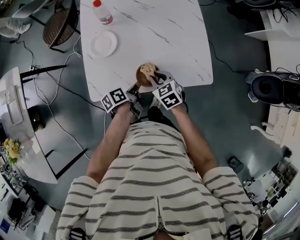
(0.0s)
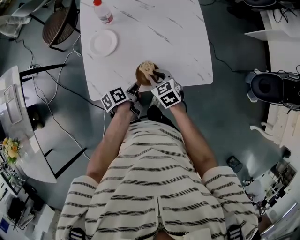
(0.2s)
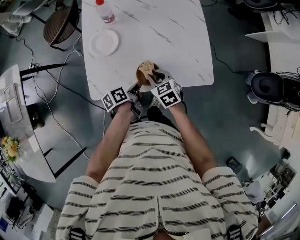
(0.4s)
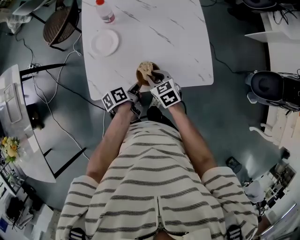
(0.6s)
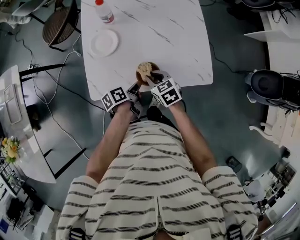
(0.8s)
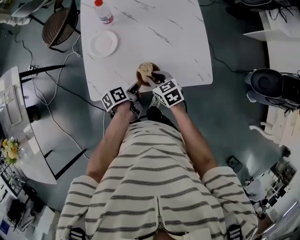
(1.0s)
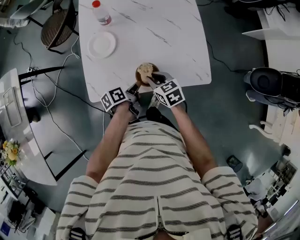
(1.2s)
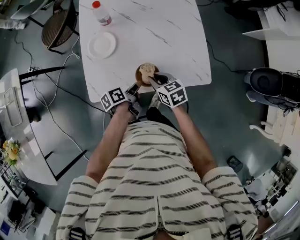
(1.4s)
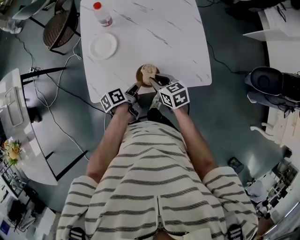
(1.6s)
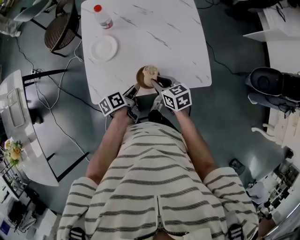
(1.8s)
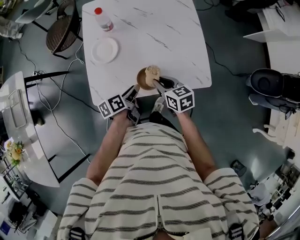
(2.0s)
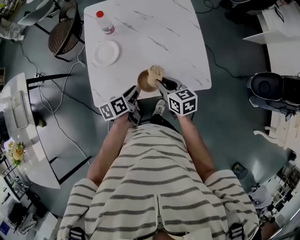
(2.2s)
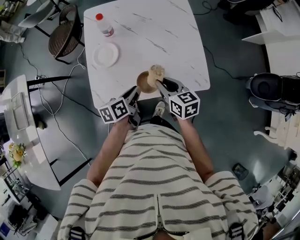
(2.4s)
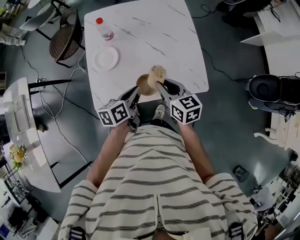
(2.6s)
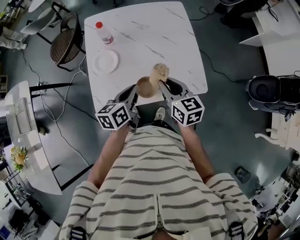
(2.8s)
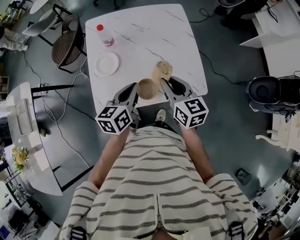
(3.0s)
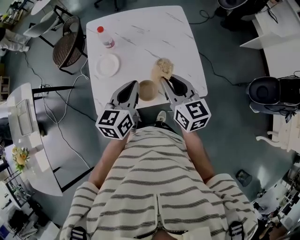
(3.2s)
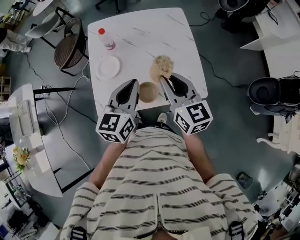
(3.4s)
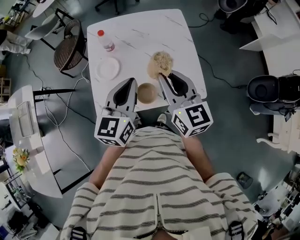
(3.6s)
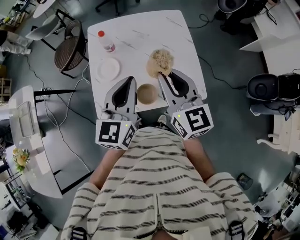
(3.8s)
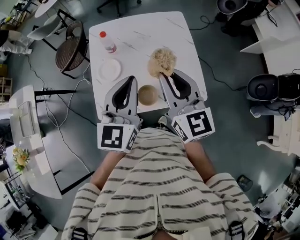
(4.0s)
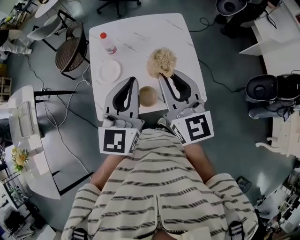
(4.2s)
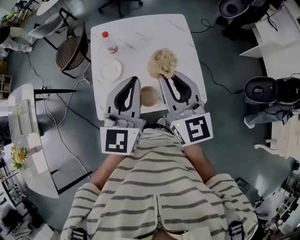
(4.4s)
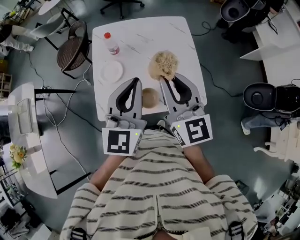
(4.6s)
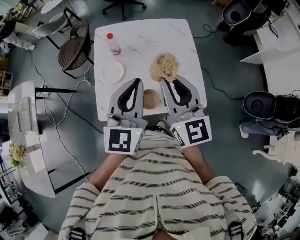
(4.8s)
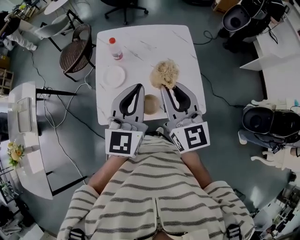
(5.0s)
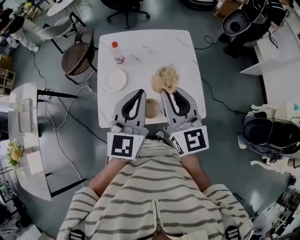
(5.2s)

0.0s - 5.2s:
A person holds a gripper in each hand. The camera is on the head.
0.0s - 1.8s: The right gripper turns by approximately 20 degrees. The left gripper opens.
1.8s - 3.4s: The two grippers go about 25 cm upward. The right gripper turns by roughly 30 degrees. Meanwhile the left gripper rotates around the line of its fingers by some 60 degrees, clockwise from behind, and closes up.
3.4s - 5.2s: The grippers both shift upward by approximately 10 cm.

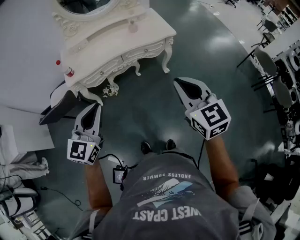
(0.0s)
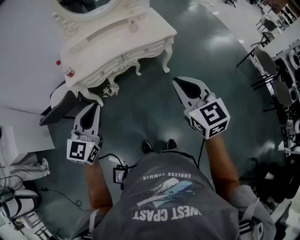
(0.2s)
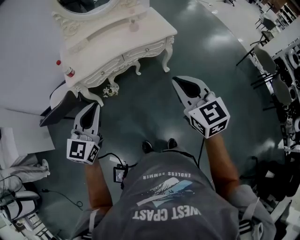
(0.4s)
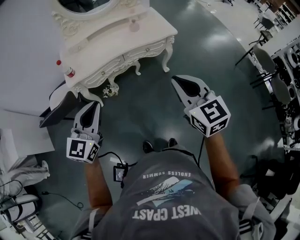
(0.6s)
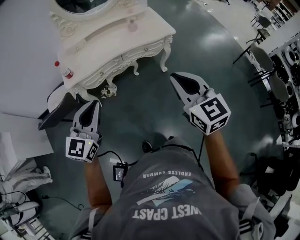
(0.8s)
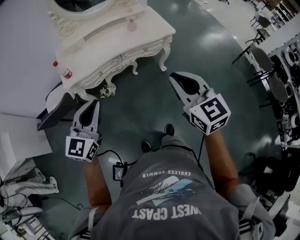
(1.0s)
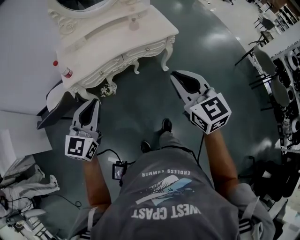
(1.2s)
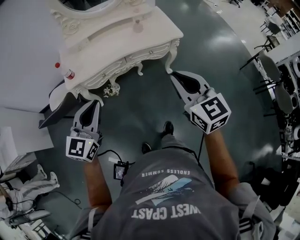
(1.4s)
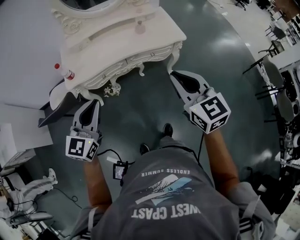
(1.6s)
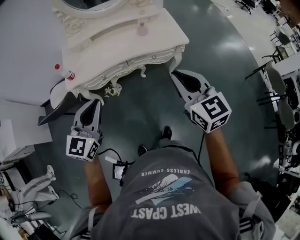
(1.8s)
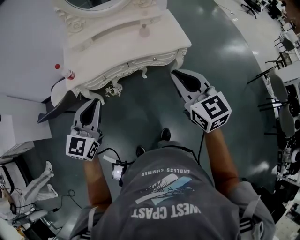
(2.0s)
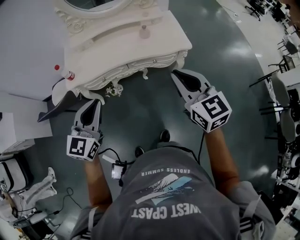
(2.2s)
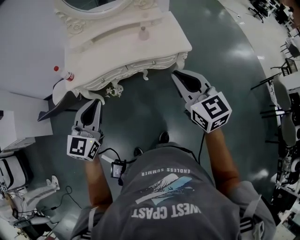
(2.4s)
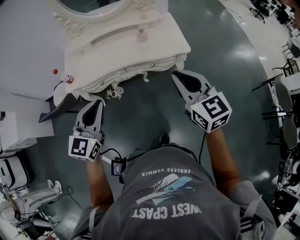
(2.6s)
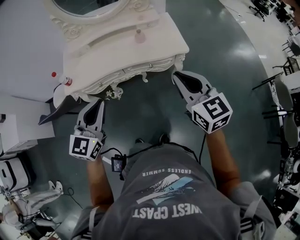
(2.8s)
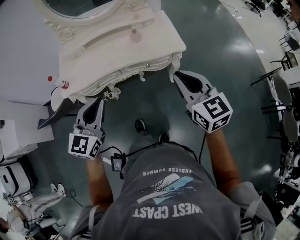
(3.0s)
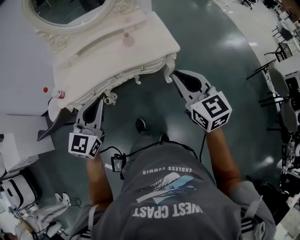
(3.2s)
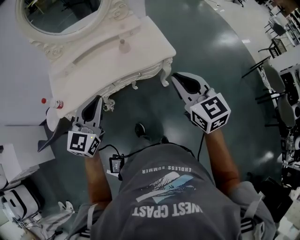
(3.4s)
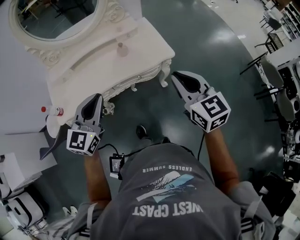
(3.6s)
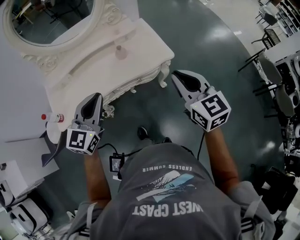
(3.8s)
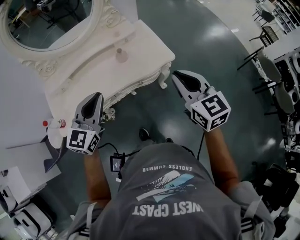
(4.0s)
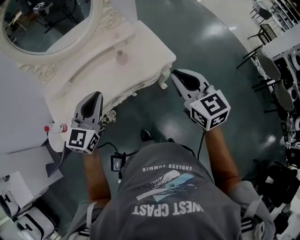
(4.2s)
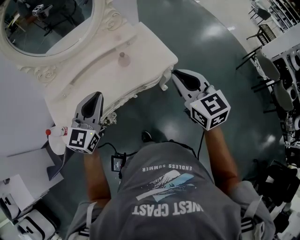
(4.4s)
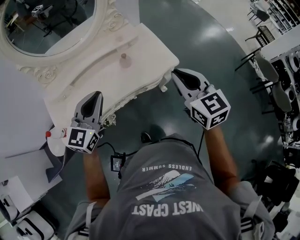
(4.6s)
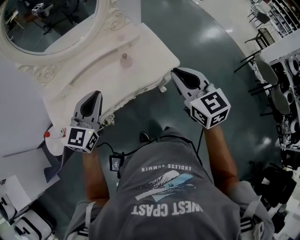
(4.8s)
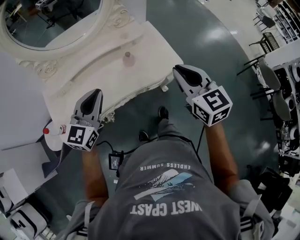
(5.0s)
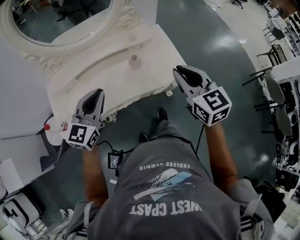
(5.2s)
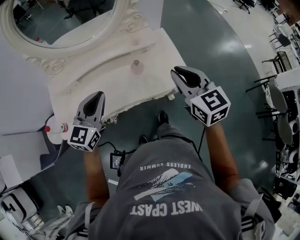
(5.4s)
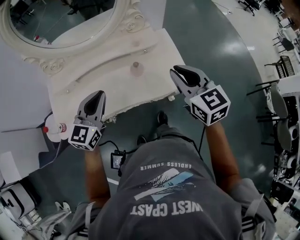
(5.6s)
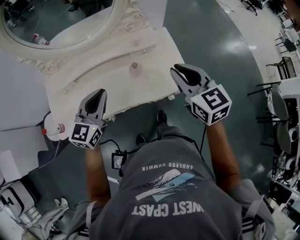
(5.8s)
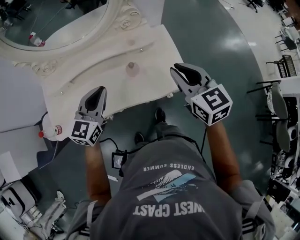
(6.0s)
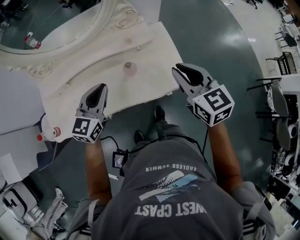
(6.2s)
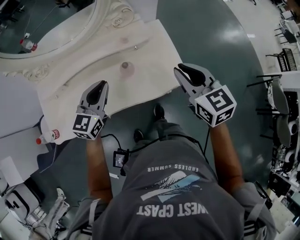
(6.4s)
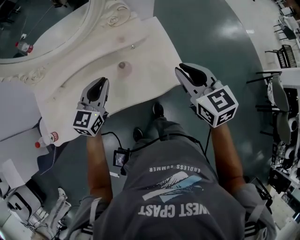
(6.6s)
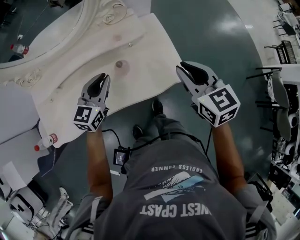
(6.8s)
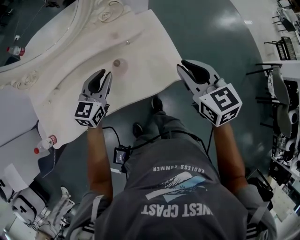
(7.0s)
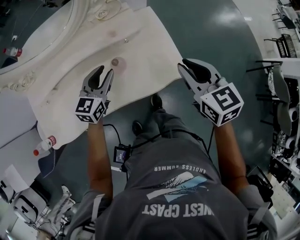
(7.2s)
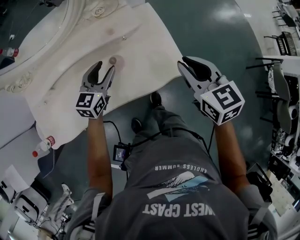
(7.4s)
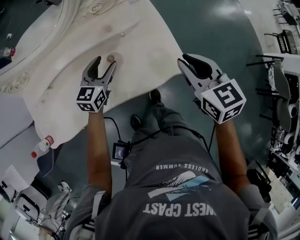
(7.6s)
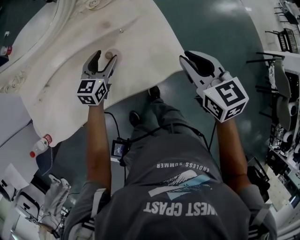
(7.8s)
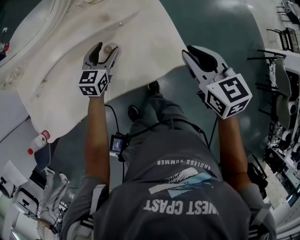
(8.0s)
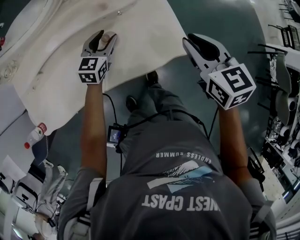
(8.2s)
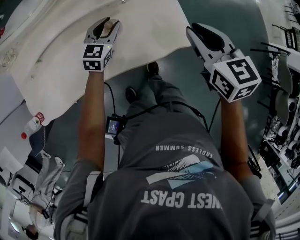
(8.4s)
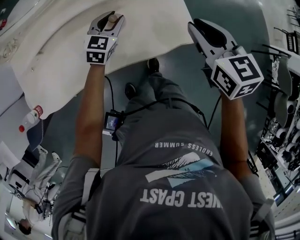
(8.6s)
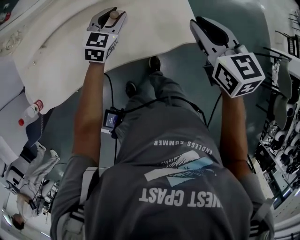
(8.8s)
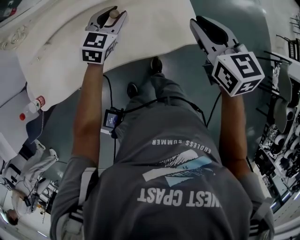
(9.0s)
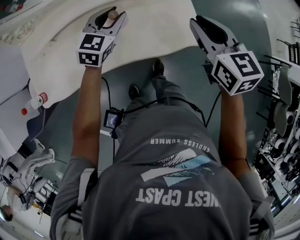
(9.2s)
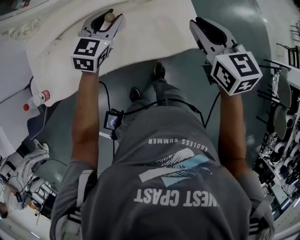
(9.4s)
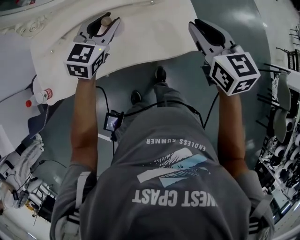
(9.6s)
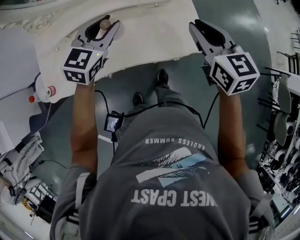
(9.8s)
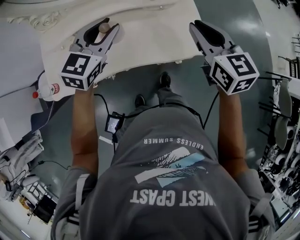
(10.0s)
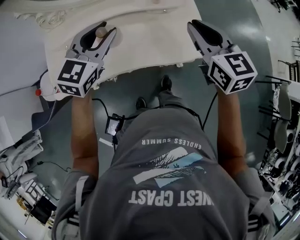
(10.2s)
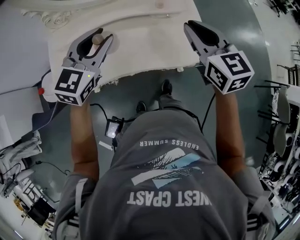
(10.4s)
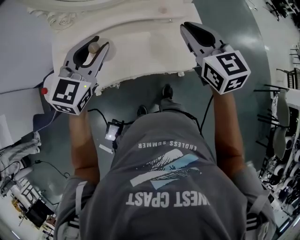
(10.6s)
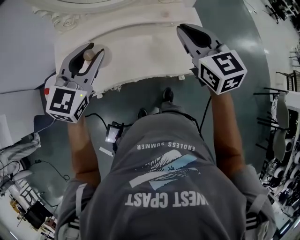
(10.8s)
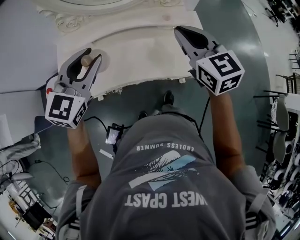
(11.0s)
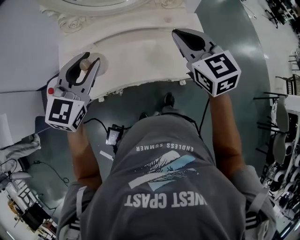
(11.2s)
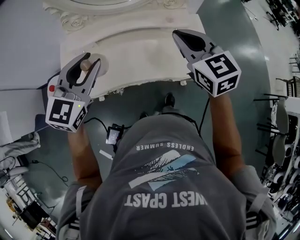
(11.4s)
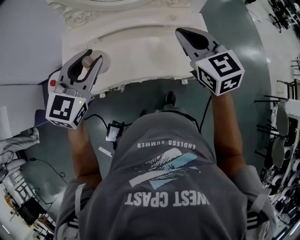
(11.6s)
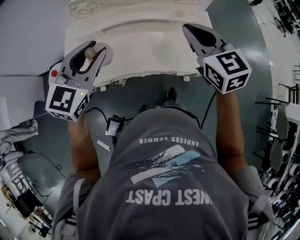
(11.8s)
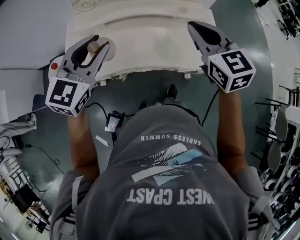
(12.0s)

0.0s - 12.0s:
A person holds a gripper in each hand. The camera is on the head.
0.0s - 1.6s: The two grippers go approximately 10 cm forward.
1.6s - 3.0s: The grippers both shift to the right and forward by roughly 15 cm.
3.0s - 4.4s: The left gripper moves forward, roughly 20 cm; the right gripper goes about 15 cm forward.
4.4s - 6.0s: The left gripper is displaced forward and downward by about 15 cm, while the right gripper shifts some 20 cm forward.
6.0s - 7.6s: The right gripper goes roughly 10 cm downward and to the right, while the left gripper shifts roughly 25 cm downward, forward and to the right, and opens.
7.6s - 9.0s: The left gripper closes.
9.0s - 10.4s: The left gripper shifts approximately 25 cm upward, backward and to the left, while the right gripper moves to the left and upward, roughly 15 cm.
10.4s - 12.0s: The right gripper goes roughly 10 cm to the left. Meanwhile the left gripper moves to the left and backward, about 10 cm.

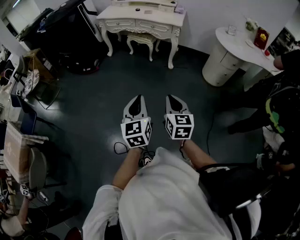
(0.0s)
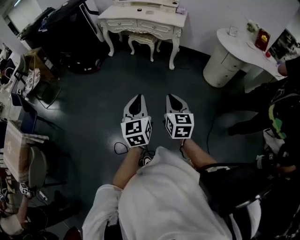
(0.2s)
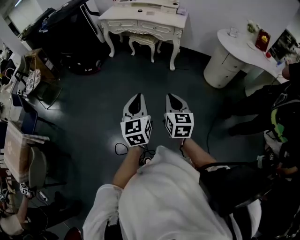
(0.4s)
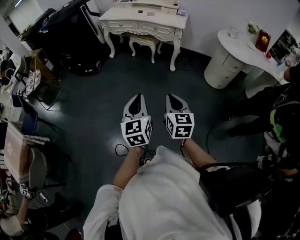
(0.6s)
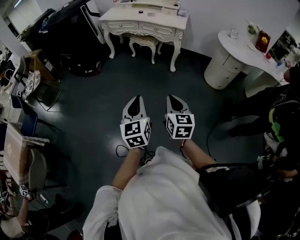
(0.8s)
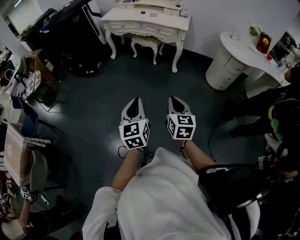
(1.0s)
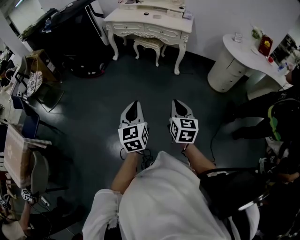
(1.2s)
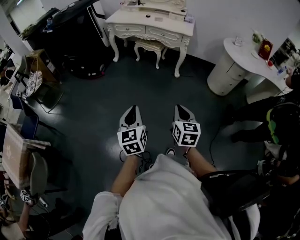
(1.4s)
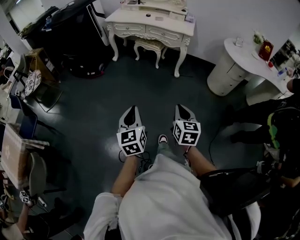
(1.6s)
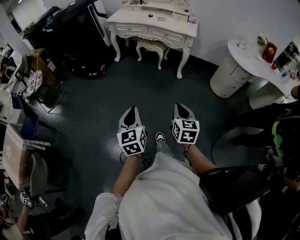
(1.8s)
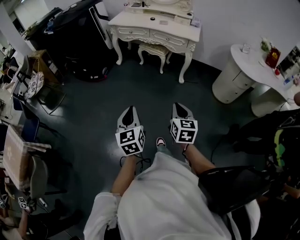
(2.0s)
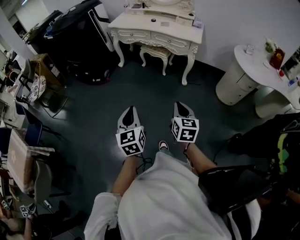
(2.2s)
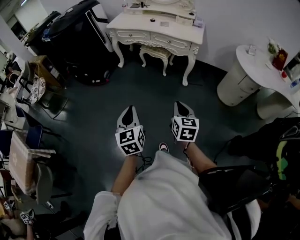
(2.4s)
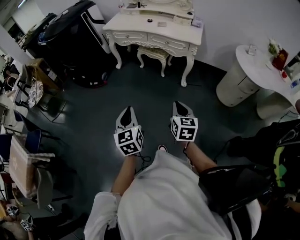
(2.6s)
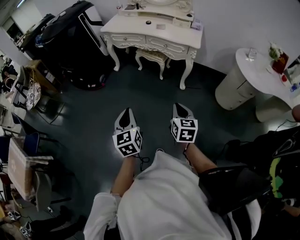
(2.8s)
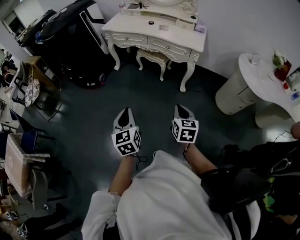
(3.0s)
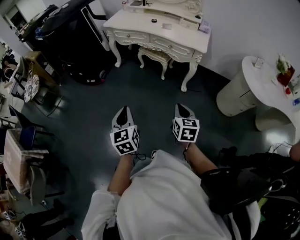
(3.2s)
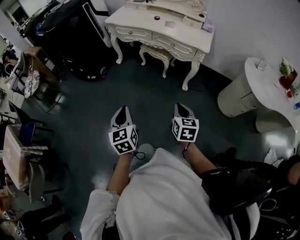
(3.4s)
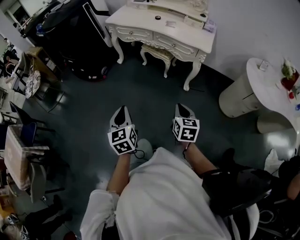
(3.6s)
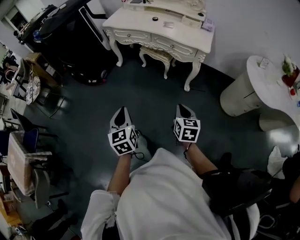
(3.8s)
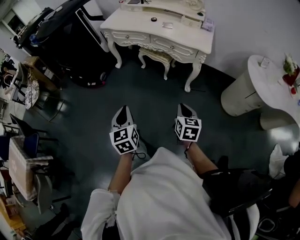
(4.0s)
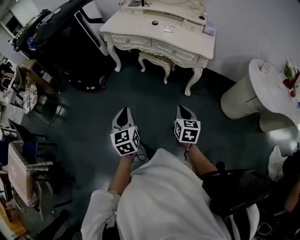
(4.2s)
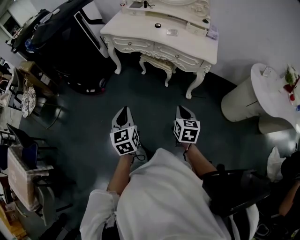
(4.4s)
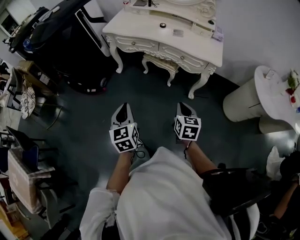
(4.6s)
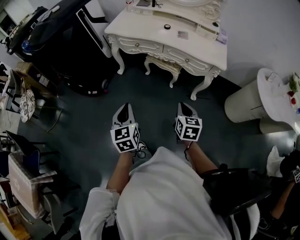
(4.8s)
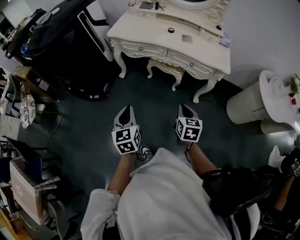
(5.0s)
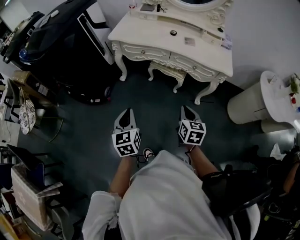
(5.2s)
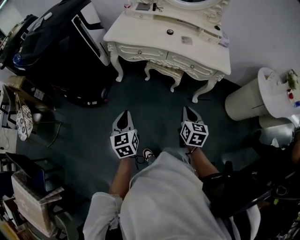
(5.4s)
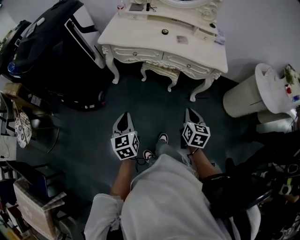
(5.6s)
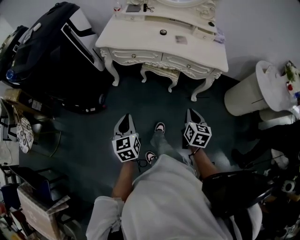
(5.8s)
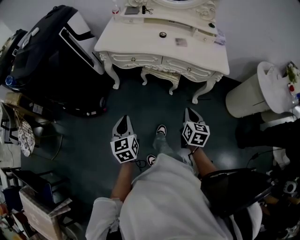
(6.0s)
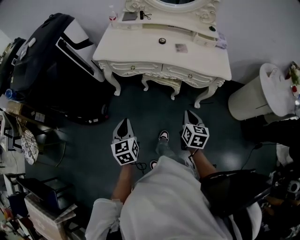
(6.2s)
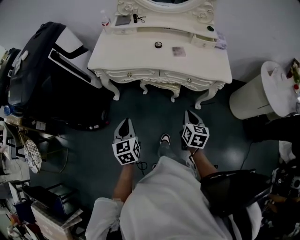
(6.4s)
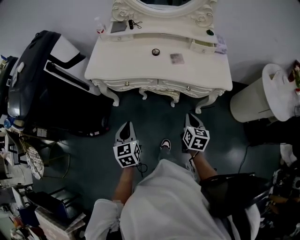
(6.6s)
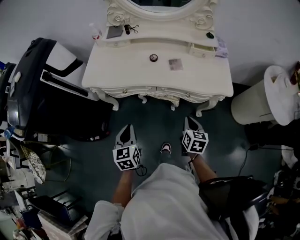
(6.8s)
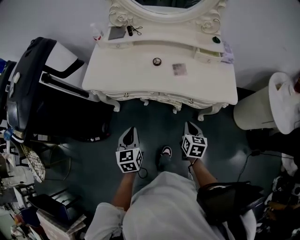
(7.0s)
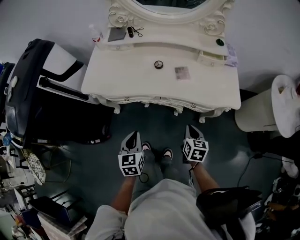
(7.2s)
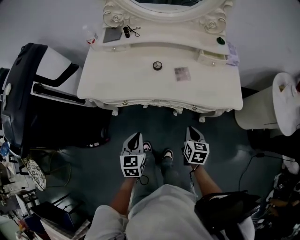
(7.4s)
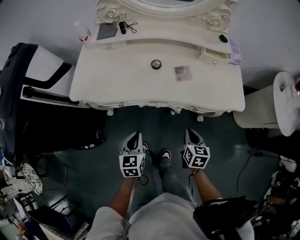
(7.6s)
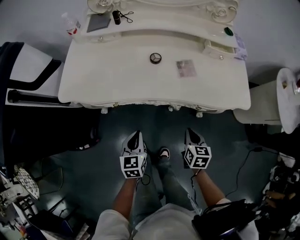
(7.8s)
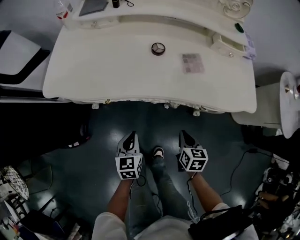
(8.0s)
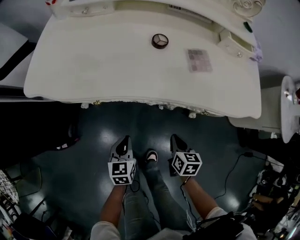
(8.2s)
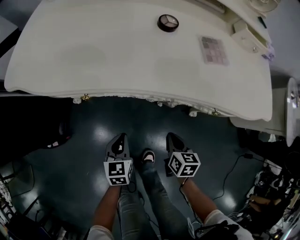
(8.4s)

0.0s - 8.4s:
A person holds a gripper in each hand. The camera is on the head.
0.0s - 1.4s: The right gripper moves to the left, roughly 5 cm. Meanwhile the left gripper heads to the left, covering some 15 cm.
1.4s - 2.8s: The grippers both shift forward by some 25 cm.
2.8s - 4.2s: Both grippers travel together forward, roughly 15 cm.
4.2s - 5.6s: Both grippers travel together forward and to the left, roughly 25 cm.
5.6s - 7.0s: The grippers both shift forward by some 25 cm.
7.0s - 8.4s: The grippers both shift downward by approximately 30 cm.
